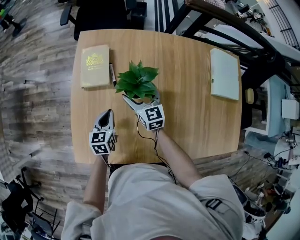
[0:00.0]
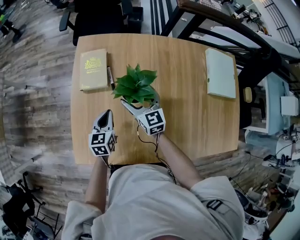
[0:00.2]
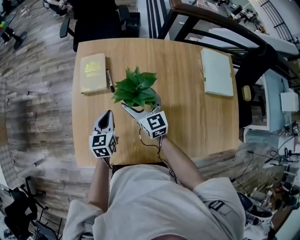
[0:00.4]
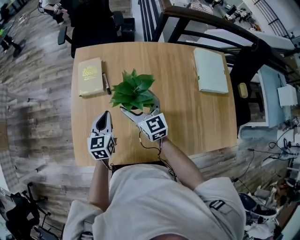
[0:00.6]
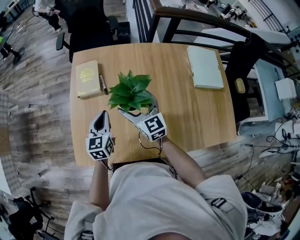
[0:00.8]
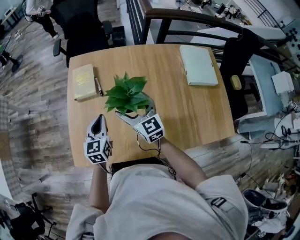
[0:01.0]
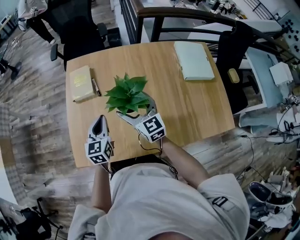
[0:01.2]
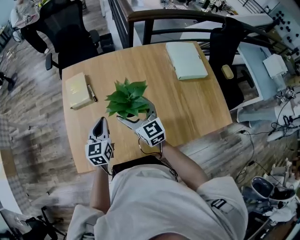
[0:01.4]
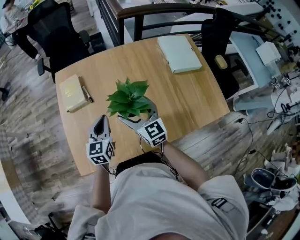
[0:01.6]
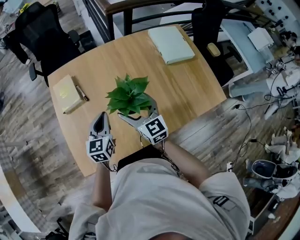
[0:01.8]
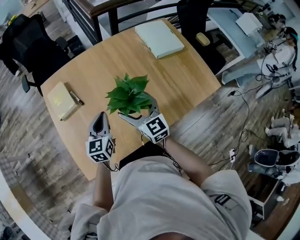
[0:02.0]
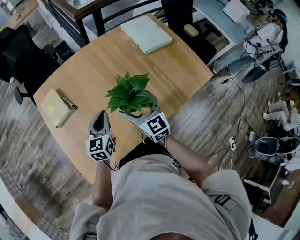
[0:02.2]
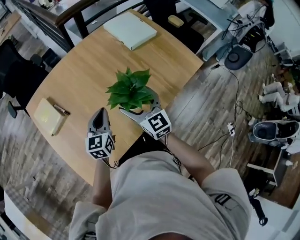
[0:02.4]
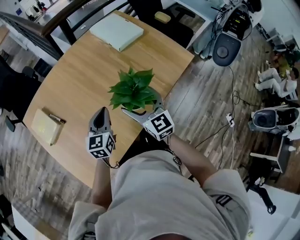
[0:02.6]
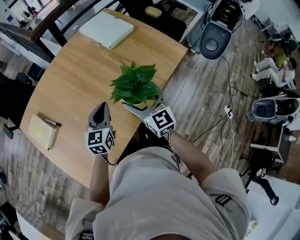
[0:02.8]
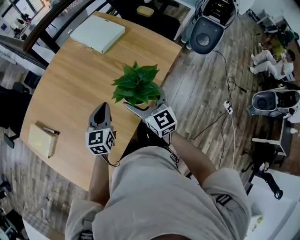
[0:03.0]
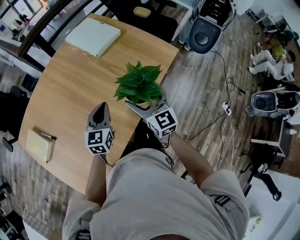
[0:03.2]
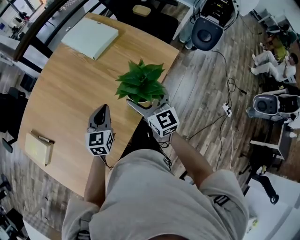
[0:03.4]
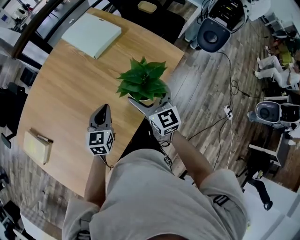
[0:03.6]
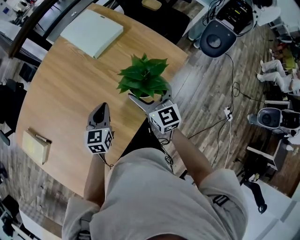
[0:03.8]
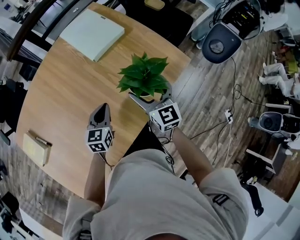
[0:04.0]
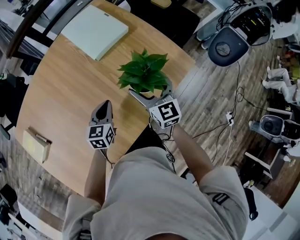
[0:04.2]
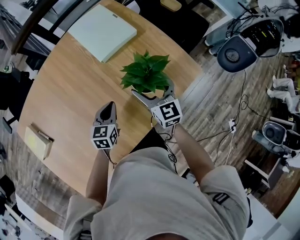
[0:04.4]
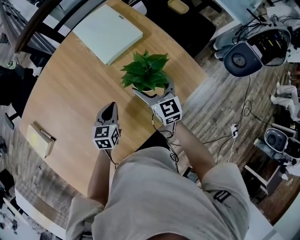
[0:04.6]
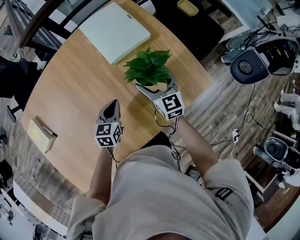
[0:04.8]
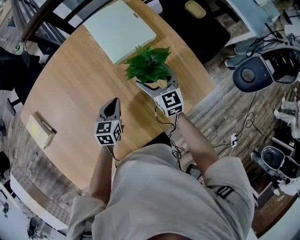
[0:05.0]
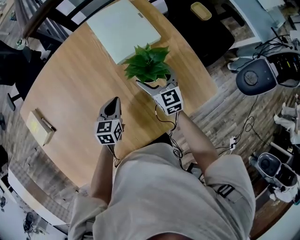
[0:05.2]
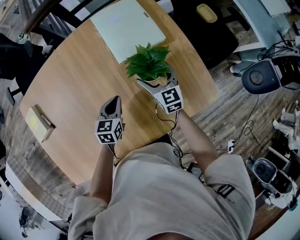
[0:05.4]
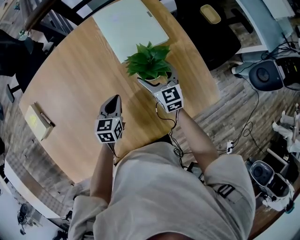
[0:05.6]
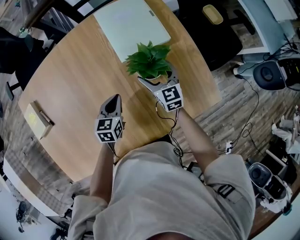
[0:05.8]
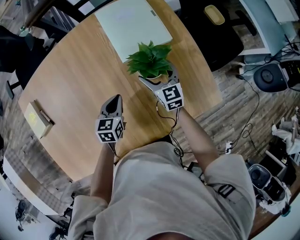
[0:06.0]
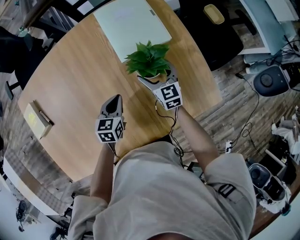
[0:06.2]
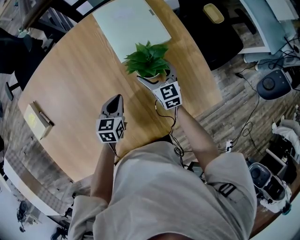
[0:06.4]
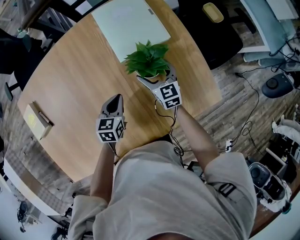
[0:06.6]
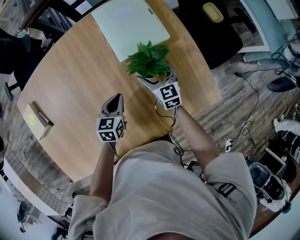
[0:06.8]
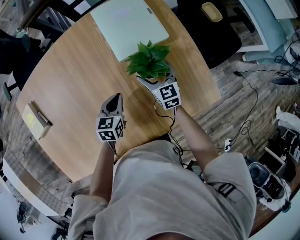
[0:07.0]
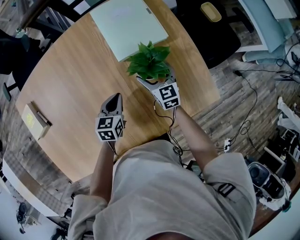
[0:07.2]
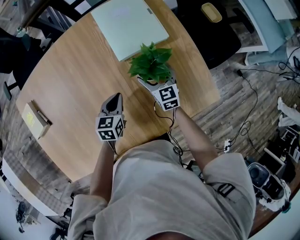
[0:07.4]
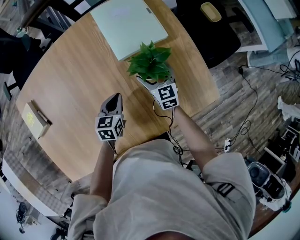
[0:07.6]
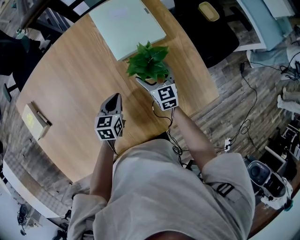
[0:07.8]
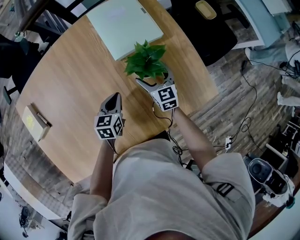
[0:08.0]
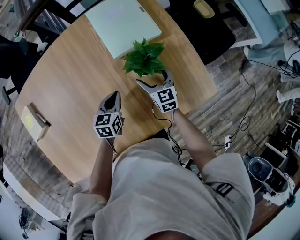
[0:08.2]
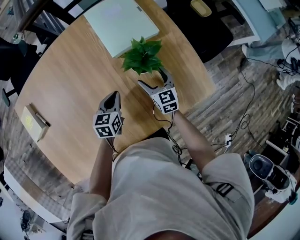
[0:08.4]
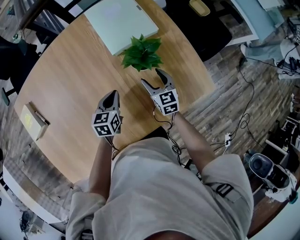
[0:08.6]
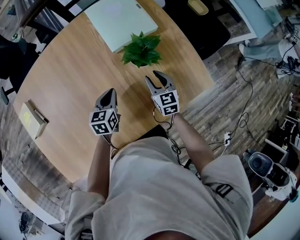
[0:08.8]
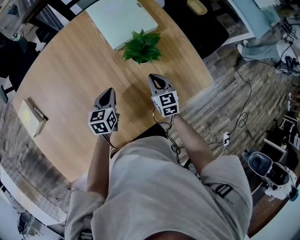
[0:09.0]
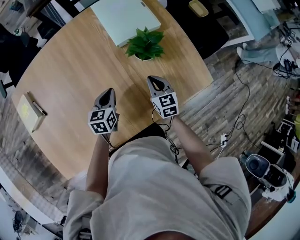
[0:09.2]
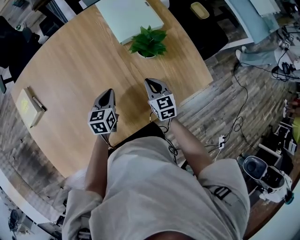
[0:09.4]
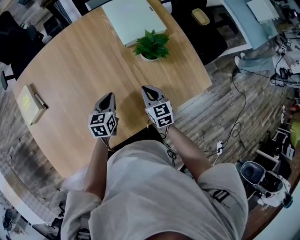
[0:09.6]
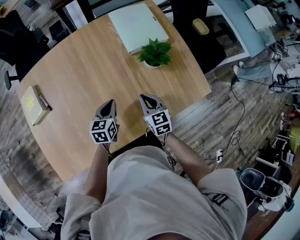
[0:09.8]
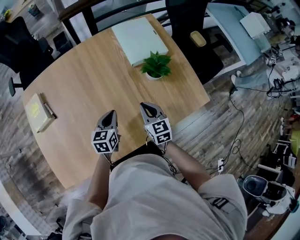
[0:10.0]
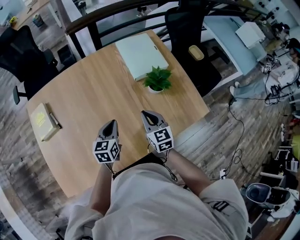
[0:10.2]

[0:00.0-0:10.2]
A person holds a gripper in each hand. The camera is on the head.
0:00.0 to 0:01.4: The right gripper shifts about 20 cm backward, upward and to the right. The left gripper heads upward, to the right and backward, covering roughly 15 cm, and changes its angle by some 20 degrees.
0:01.4 to 0:03.0: The left gripper shifts by roughly 25 cm, and swivels some 50 degrees; the right gripper shifts by approximately 30 cm, and changes its angle by some 50 degrees.
0:03.0 to 0:04.4: The left gripper shifts some 20 cm forward, downward and to the right. The right gripper is displaced forward and downward by roughly 25 cm.
0:04.4 to 0:05.8: The right gripper heads forward and downward, covering roughly 15 cm. The left gripper goes about 5 cm forward.
0:05.8 to 0:07.2: There are only small adjustments of the grippers.
0:07.2 to 0:08.8: The right gripper shifts approximately 10 cm backward, and closes up.
0:08.8 to 0:10.2: The two grippers go about 15 cm to the left, upward and backward.

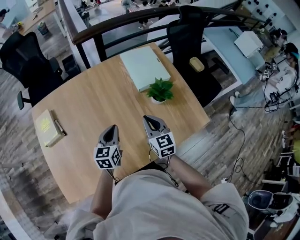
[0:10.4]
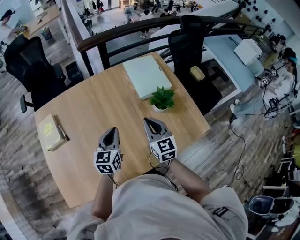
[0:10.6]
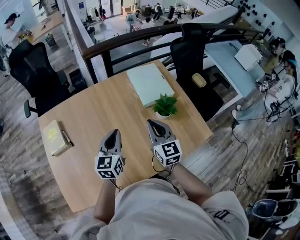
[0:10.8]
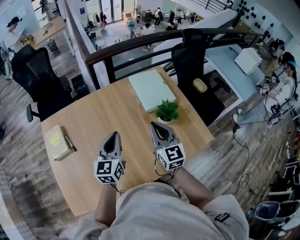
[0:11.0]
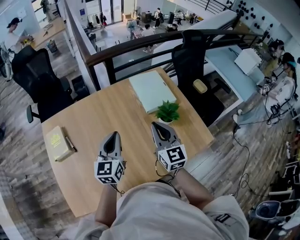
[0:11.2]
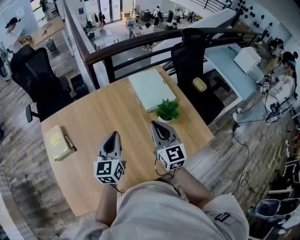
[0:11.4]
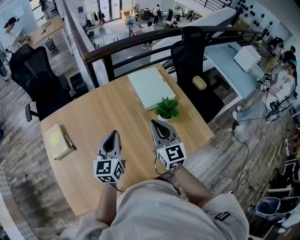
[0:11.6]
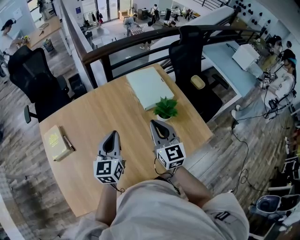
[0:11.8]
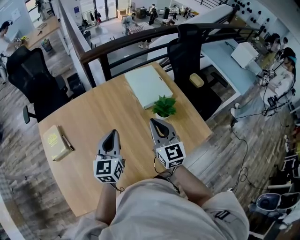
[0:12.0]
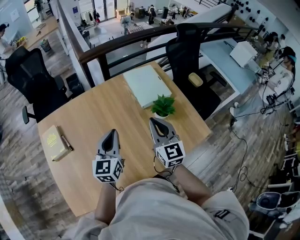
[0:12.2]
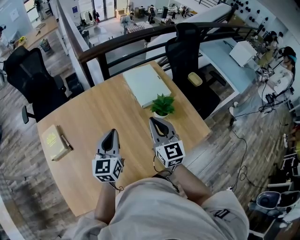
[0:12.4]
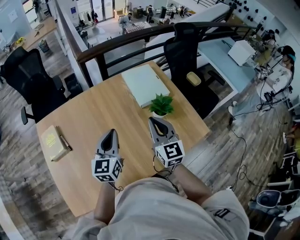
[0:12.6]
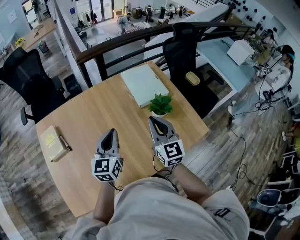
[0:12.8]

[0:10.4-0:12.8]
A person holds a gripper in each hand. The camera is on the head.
0:10.4 to 0:11.6: The two grippers go roughly 15 cm upward.
0:11.6 to 0:12.8: The grippers move only a little.

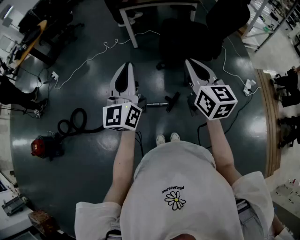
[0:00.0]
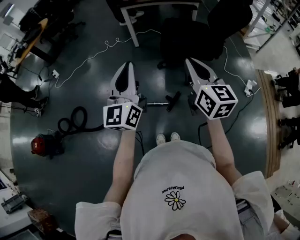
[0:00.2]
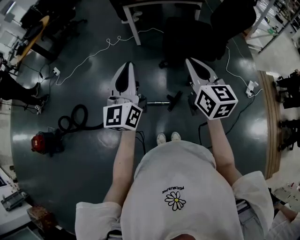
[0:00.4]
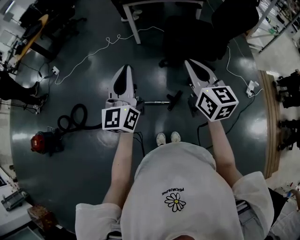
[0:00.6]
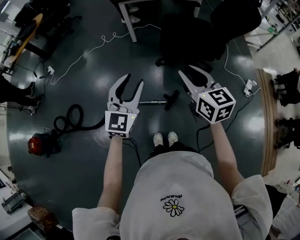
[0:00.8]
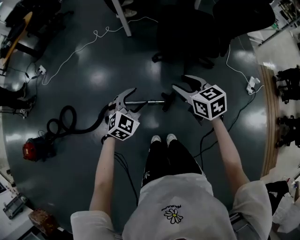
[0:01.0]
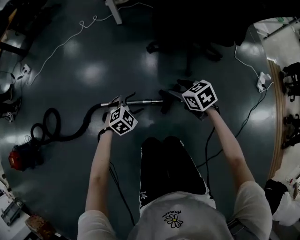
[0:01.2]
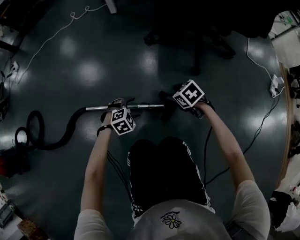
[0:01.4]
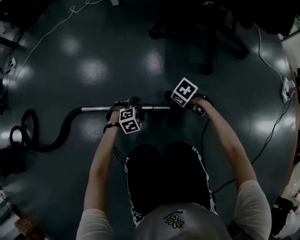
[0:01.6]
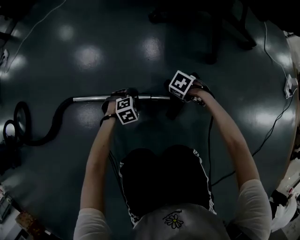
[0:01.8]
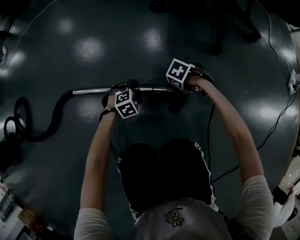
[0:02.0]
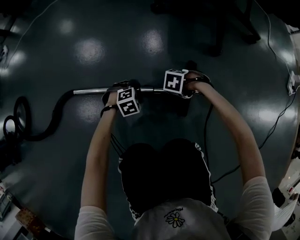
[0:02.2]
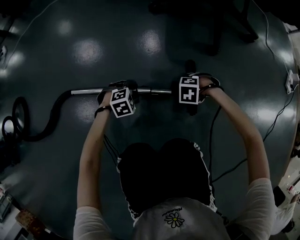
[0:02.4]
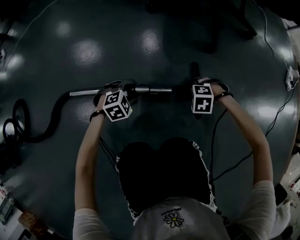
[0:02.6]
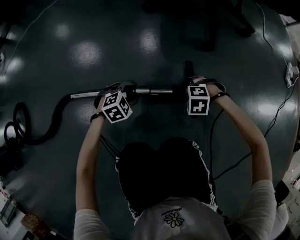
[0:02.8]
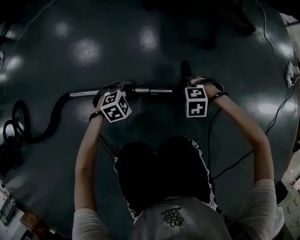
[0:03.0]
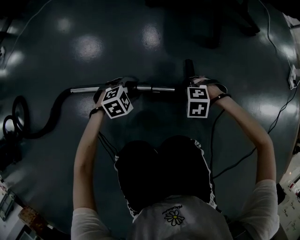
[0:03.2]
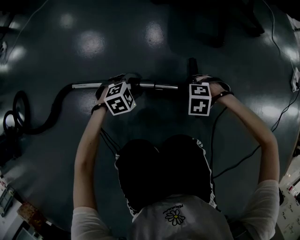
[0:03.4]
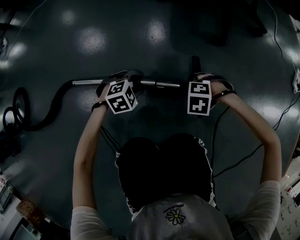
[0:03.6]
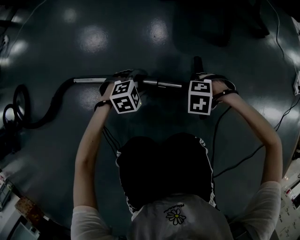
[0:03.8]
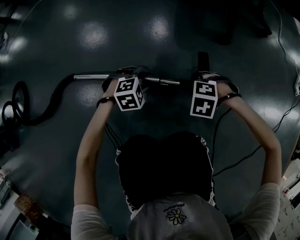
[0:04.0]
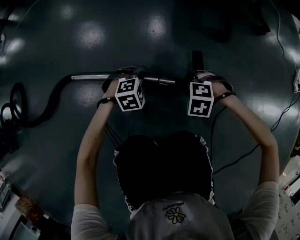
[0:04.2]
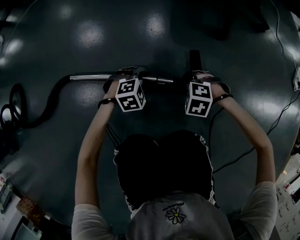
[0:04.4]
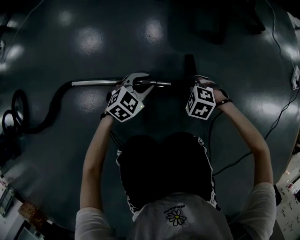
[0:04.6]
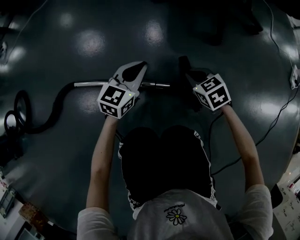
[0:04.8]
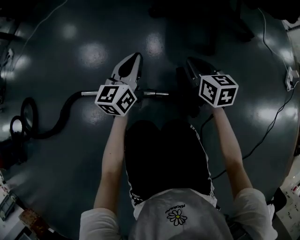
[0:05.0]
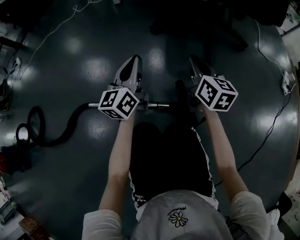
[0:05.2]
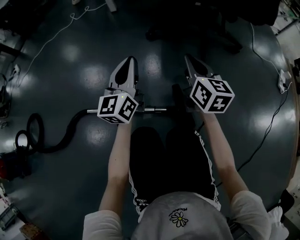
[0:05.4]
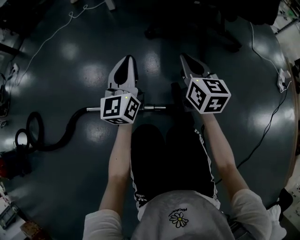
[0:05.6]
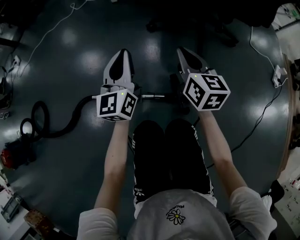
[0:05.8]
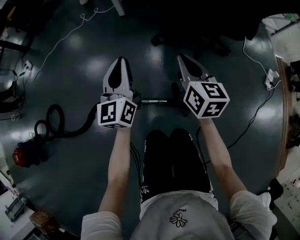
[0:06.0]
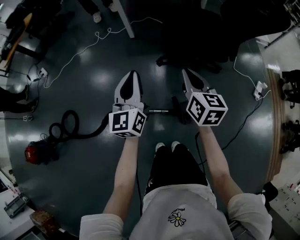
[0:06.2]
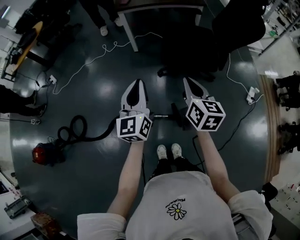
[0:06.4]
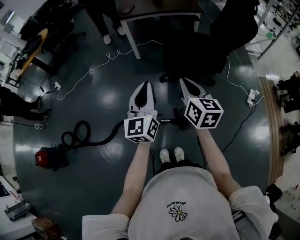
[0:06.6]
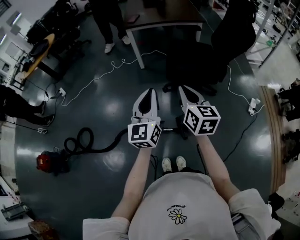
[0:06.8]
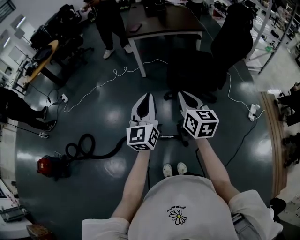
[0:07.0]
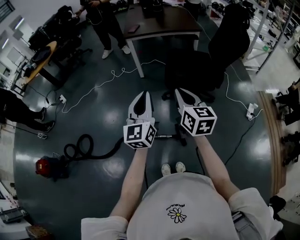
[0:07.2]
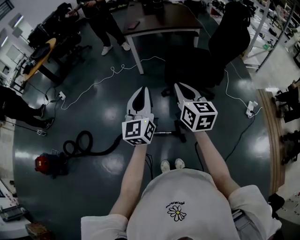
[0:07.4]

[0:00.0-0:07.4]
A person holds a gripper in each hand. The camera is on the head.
0:00.0 to 0:01.4: The grippers both shift downward by roughly 90 cm. The right gripper tilts its fingers about 60 degrees downward, and opens; the left gripper tilts its fingers some 80 degrees downward, and opens up.
0:01.4 to 0:03.0: Both grippers move downward, about 15 cm. The left gripper closes its fingers. Meanwhile the right gripper rolls counterclockwise, seen from behind, by approximately 50 degrees.
0:03.0 to 0:04.4: There are only small adjustments of the grippers.
0:04.4 to 0:06.0: The two grippers go some 60 cm upward. The left gripper tips its fingers upward by approximately 70 degrees, and closes up; the right gripper tilts its fingers roughly 70 degrees upward, and closes up.
0:06.0 to 0:07.4: The left gripper heads upward and backward, covering some 40 cm. The right gripper travels upward by approximately 40 cm.

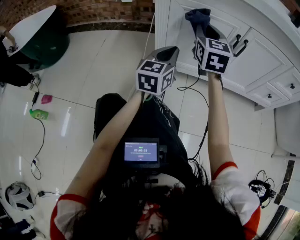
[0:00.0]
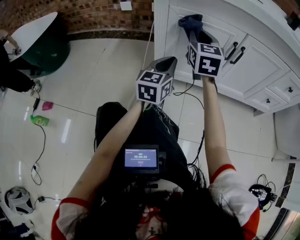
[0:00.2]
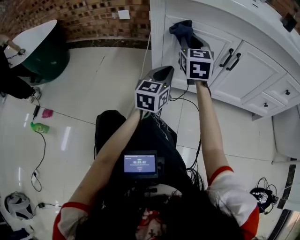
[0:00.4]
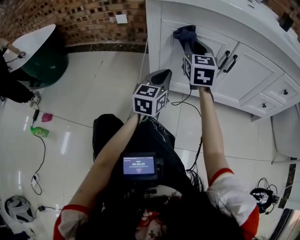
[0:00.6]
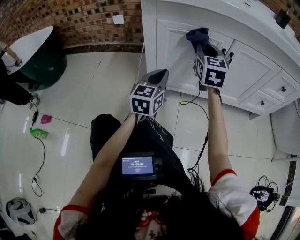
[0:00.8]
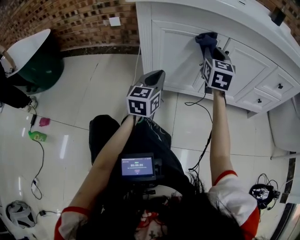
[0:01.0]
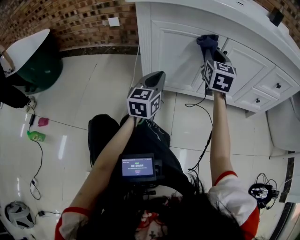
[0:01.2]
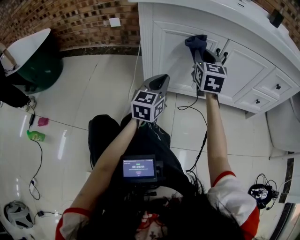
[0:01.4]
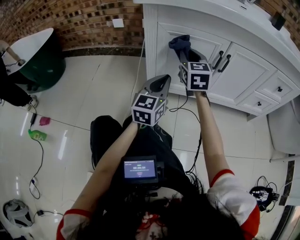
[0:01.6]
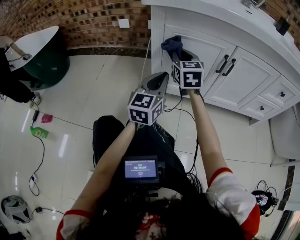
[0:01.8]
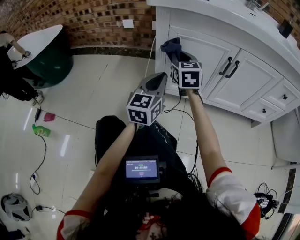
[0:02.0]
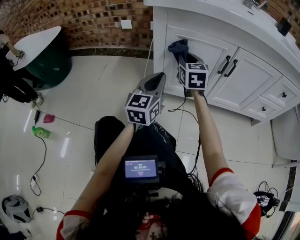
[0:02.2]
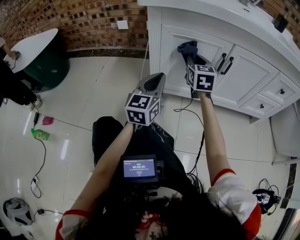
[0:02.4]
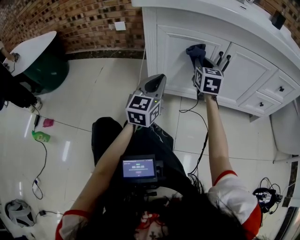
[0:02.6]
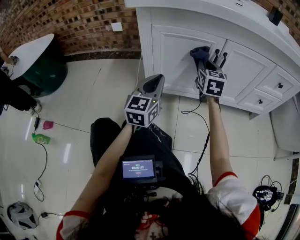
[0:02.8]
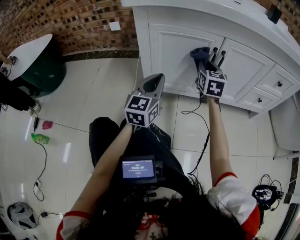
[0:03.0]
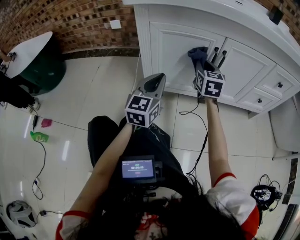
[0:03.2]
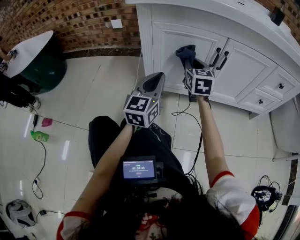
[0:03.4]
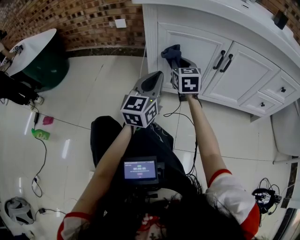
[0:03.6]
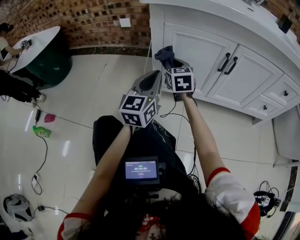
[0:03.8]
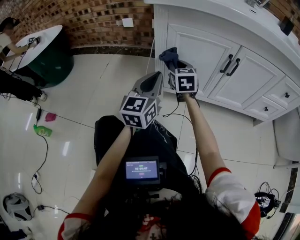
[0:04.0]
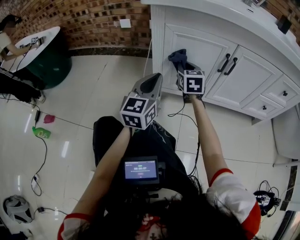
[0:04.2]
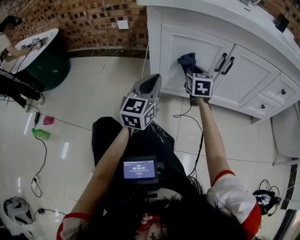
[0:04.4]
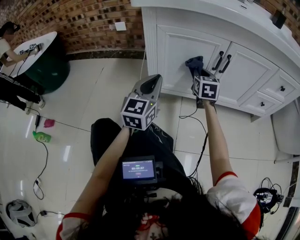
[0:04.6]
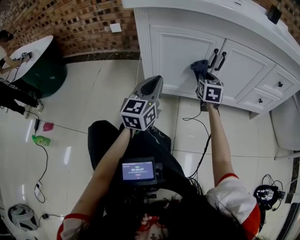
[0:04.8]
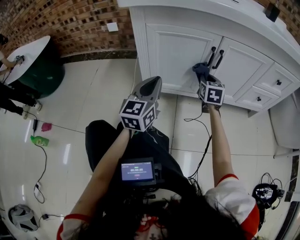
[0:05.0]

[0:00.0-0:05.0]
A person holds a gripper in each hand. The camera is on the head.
0:00.0 to 0:01.6: The right gripper travels to the right and back again, some 10 cm each way. Meanwhile the left gripper changes place by some 5 cm.
0:01.6 to 0:03.4: The right gripper swings left and right, about 20 cm each way, with 2 reversals.
0:03.4 to 0:05.0: The right gripper is displaced to the right and downward by roughly 15 cm.
